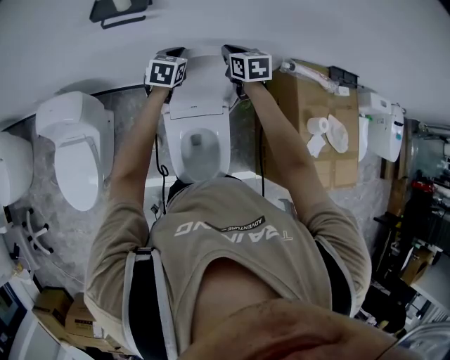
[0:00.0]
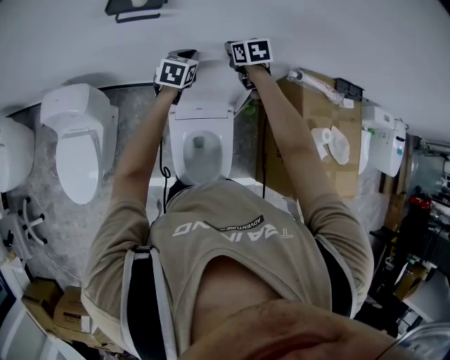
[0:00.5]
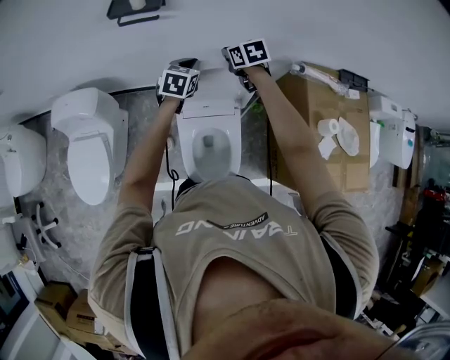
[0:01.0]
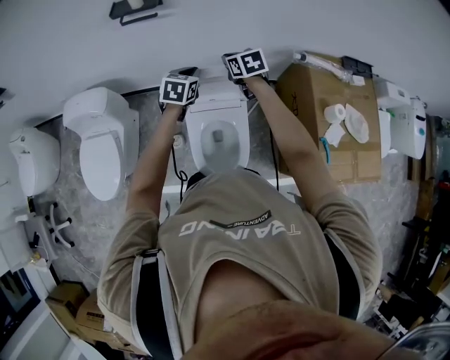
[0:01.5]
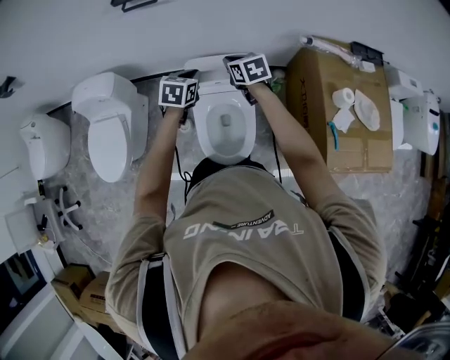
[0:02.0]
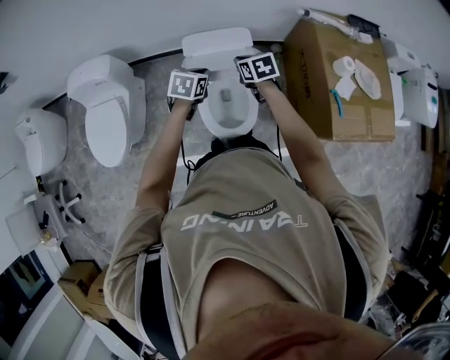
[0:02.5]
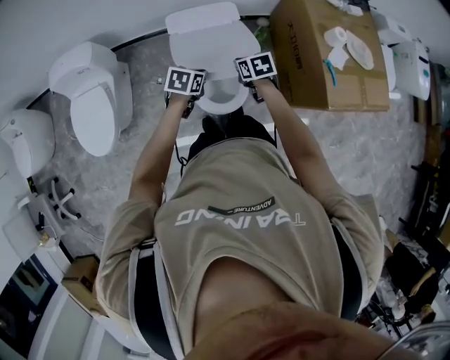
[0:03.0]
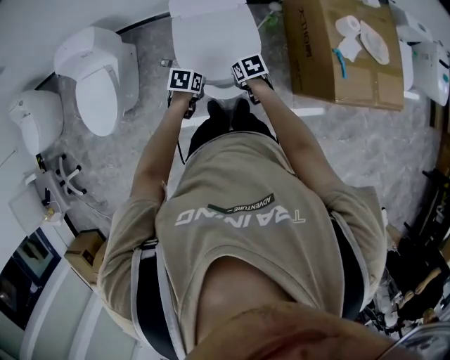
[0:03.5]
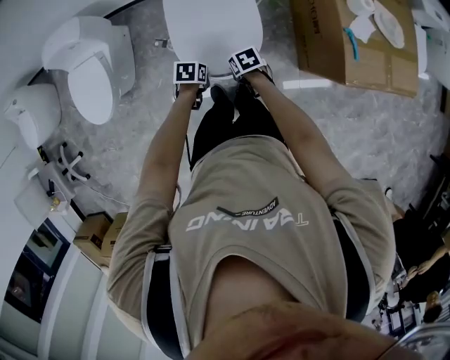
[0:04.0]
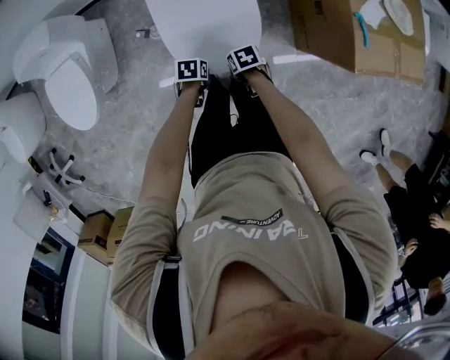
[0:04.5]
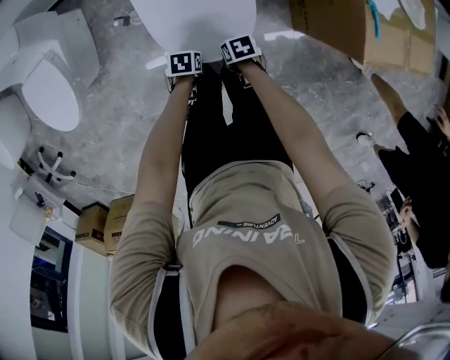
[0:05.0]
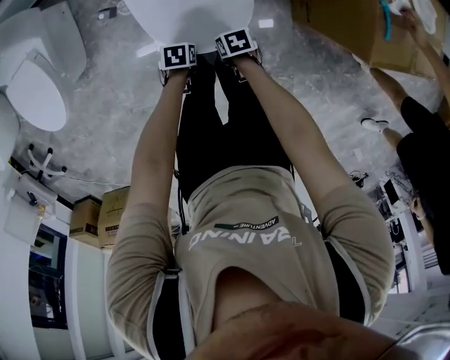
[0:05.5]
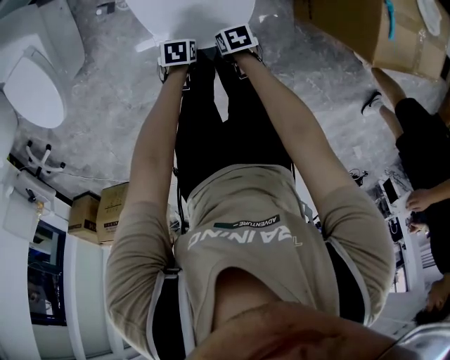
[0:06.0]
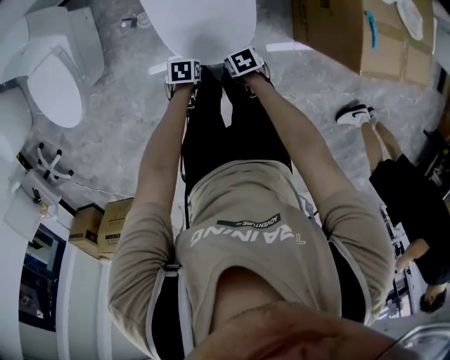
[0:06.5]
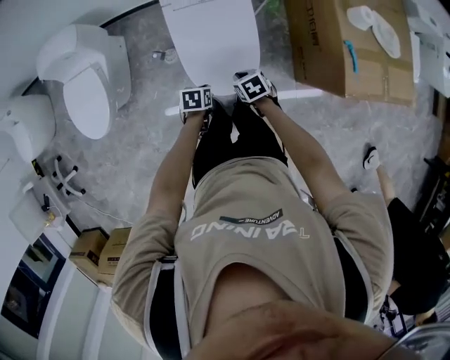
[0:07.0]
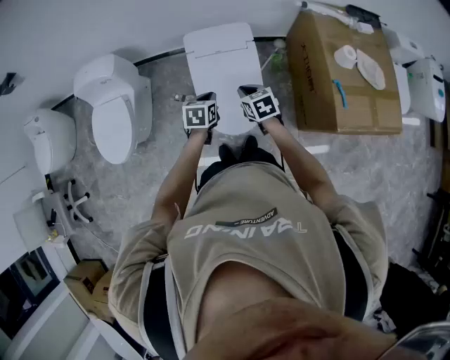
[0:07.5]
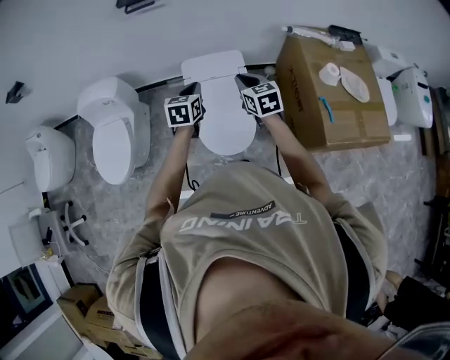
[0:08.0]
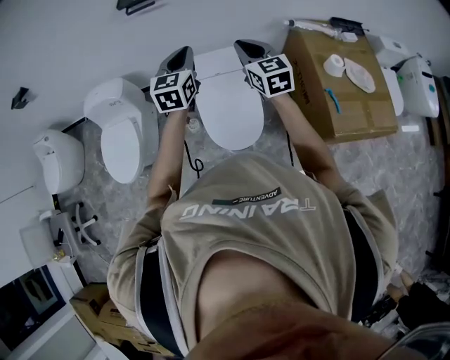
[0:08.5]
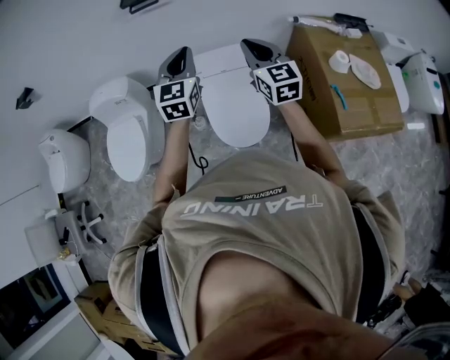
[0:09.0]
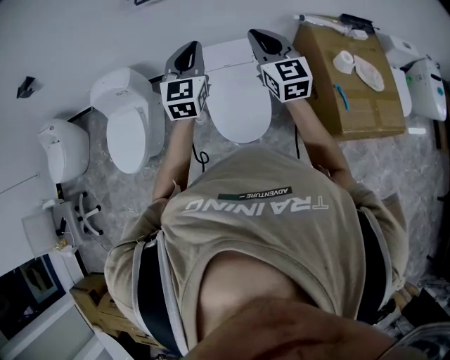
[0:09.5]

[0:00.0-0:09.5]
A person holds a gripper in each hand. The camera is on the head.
0:00.0 to 0:02.0: Both grippers travel together backward, about 20 cm.
0:02.0 to 0:04.0: The left gripper ends up some 40 cm from where it was, and swivels some 40 degrees. Meanwhile the right gripper ends up roughly 40 cm from where it was, and turns by roughly 40 degrees.
0:04.0 to 0:05.5: The two grippers go roughly 20 cm downward.
0:05.5 to 0:07.5: The grippers both shift upward by roughly 35 cm. The right gripper rotates roughly 40 degrees, while the left gripper swivels roughly 40 degrees.
0:07.5 to 0:09.5: The two grippers go about 30 cm upward. The left gripper points its fingers roughly 40 degrees further upward; the right gripper tilts its fingers some 40 degrees upward.

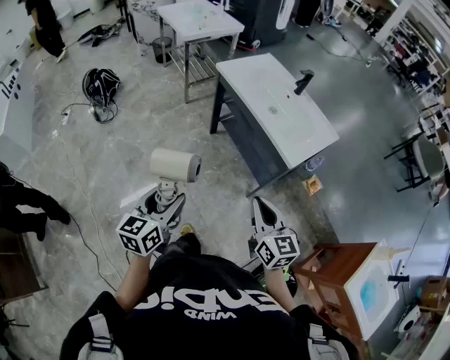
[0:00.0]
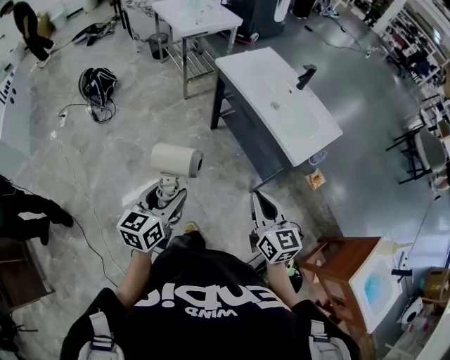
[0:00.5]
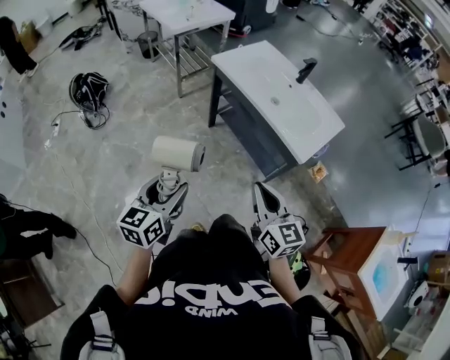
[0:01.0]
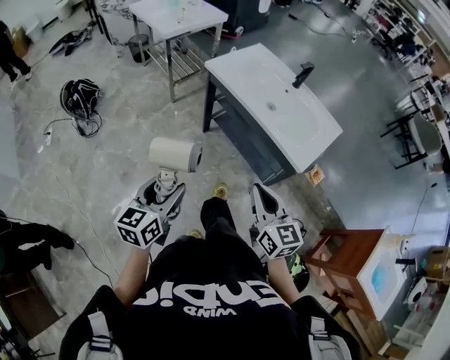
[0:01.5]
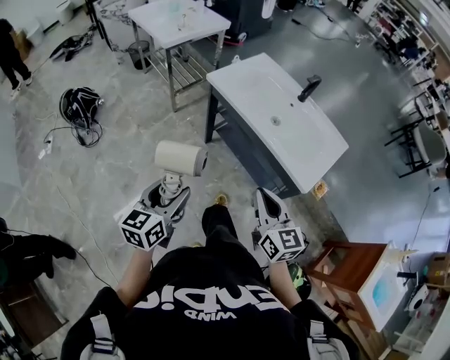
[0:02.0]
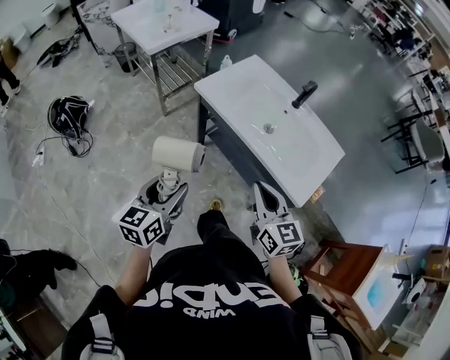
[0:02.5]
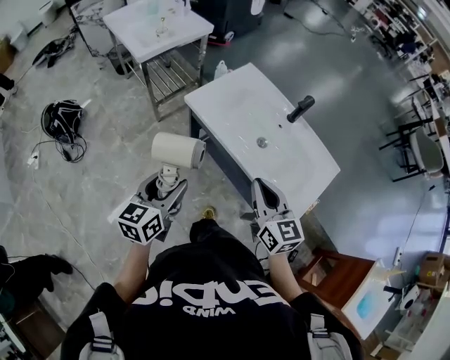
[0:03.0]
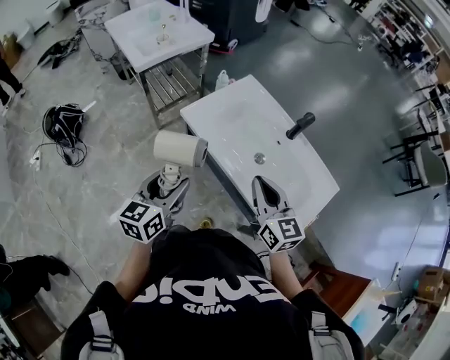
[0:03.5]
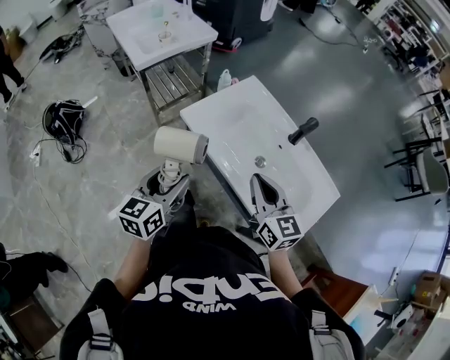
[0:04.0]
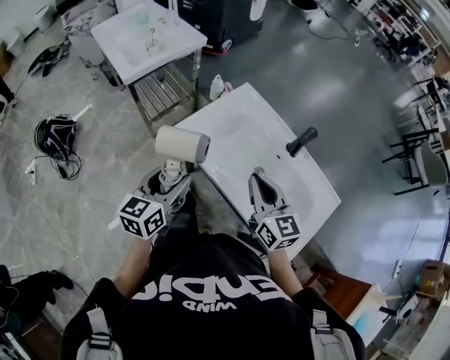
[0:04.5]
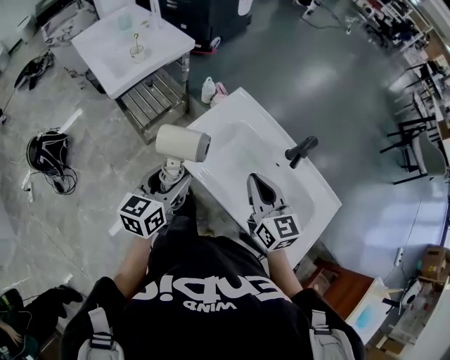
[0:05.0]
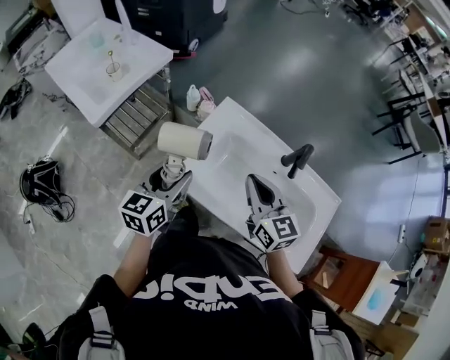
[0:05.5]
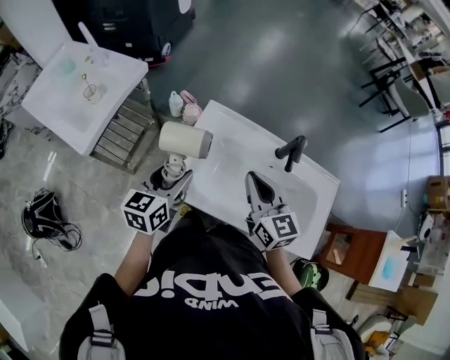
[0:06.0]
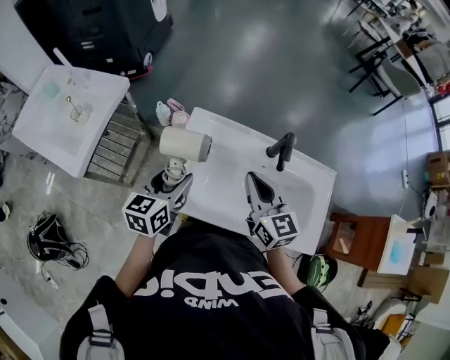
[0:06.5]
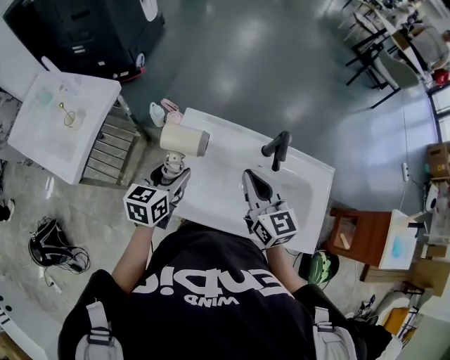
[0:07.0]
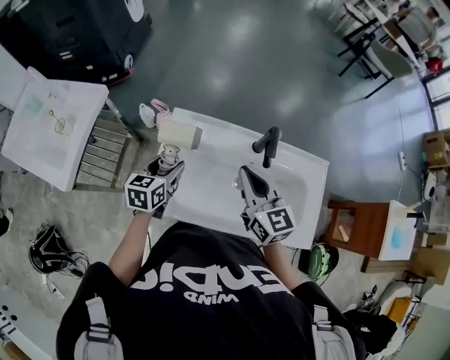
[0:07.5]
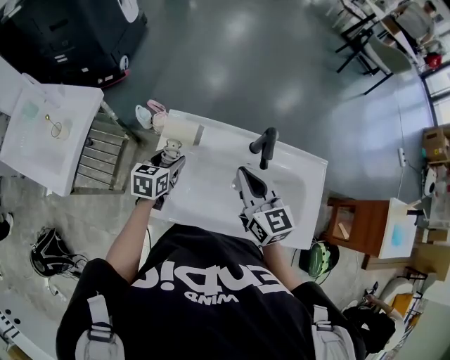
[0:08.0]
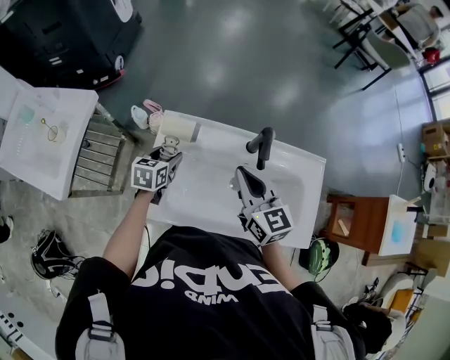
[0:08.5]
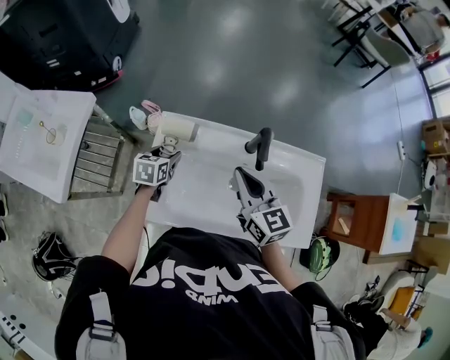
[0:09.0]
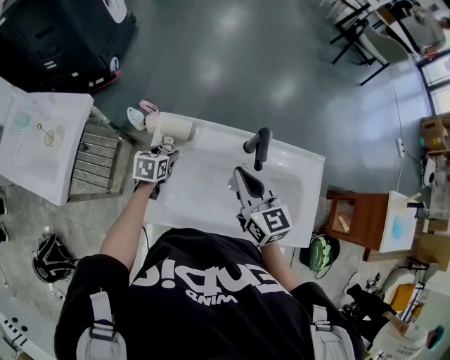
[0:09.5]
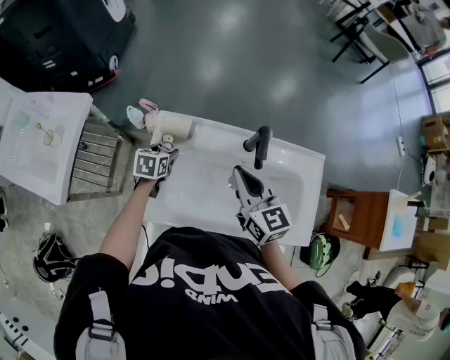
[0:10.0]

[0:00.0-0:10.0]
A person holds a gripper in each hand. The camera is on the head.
0:00.0 to 0:02.0: The two grippers go some 20 cm forward.
0:02.0 to 0:04.0: The two grippers go about 30 cm forward.
0:04.0 to 0:06.0: The right gripper shifts by some 20 cm, and rotates approximately 30 degrees; the left gripper changes place by about 30 cm, and swivels approximately 30 degrees.
0:06.0 to 0:08.0: The left gripper shifts about 20 cm forward, downward and to the right, and changes its angle by approximately 20 degrees, while the right gripper goes some 5 cm to the right.
0:08.0 to 0:10.0: The left gripper goes some 5 cm downward.

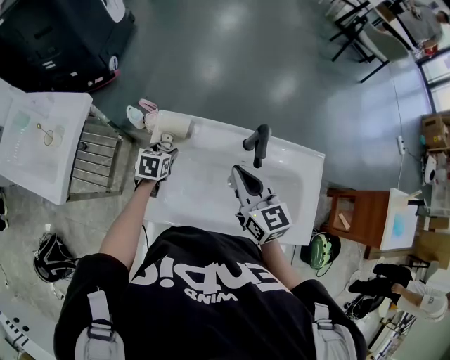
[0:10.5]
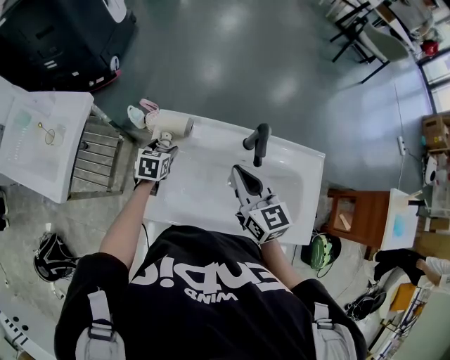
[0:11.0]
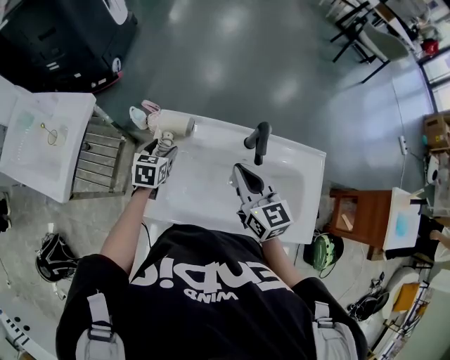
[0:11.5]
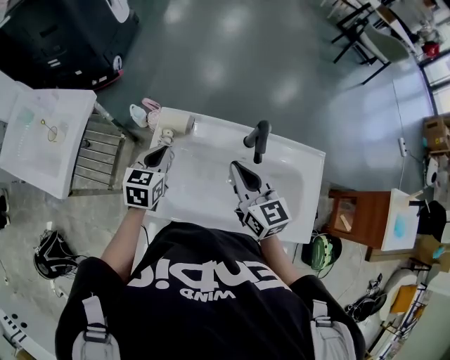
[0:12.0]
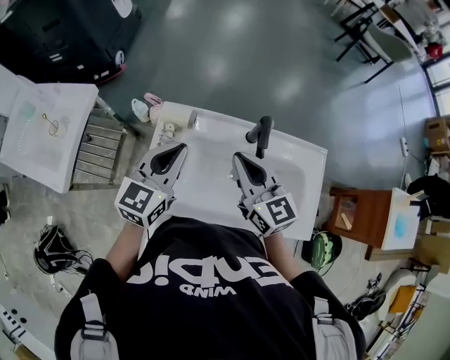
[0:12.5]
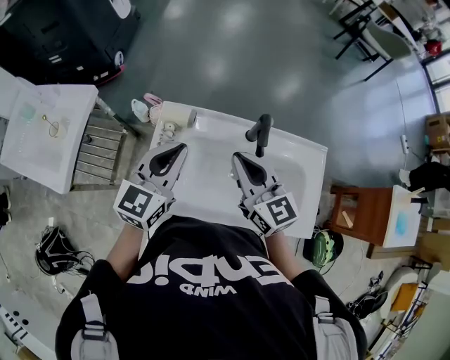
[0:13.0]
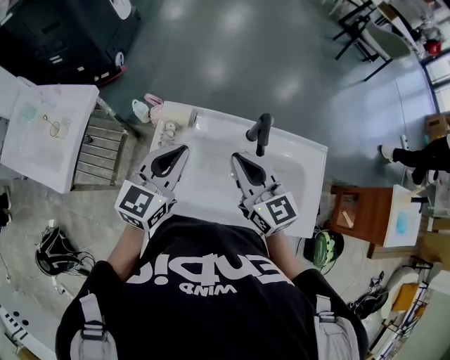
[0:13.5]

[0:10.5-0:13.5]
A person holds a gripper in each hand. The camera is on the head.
0:10.5 to 0:12.0: The left gripper travels upward by about 15 cm, changes its angle by approximately 20 degrees, and closes.
0:12.0 to 0:13.5: The left gripper is displaced upward and to the right by about 15 cm, and rotates approximately 30 degrees.

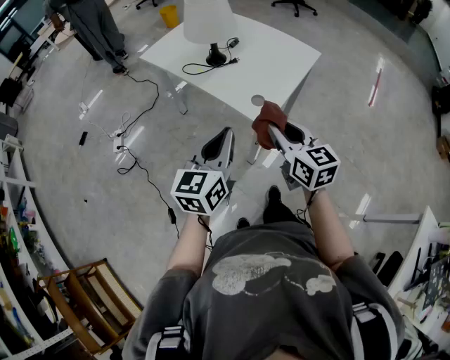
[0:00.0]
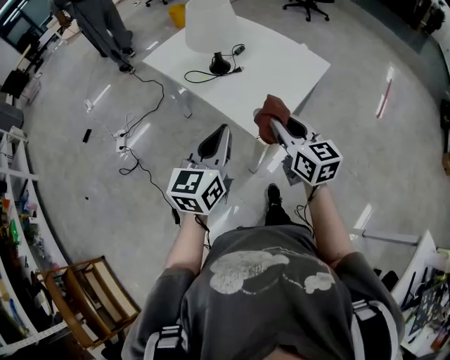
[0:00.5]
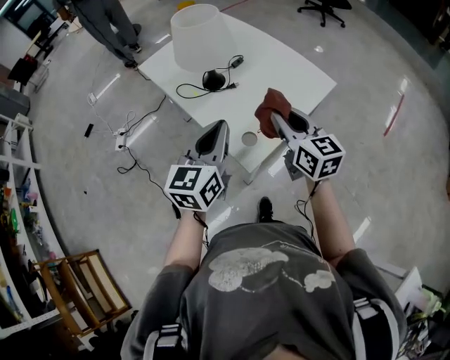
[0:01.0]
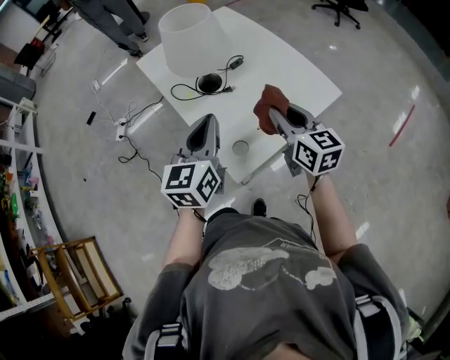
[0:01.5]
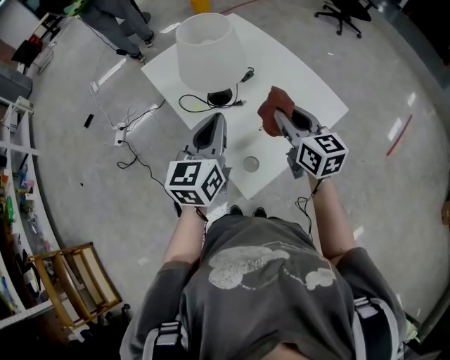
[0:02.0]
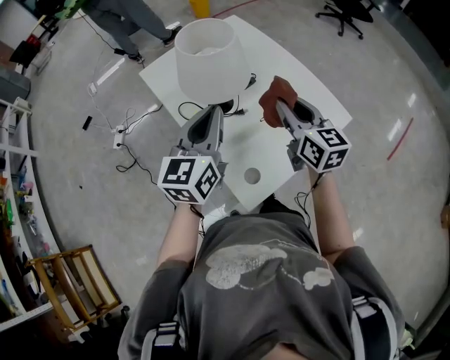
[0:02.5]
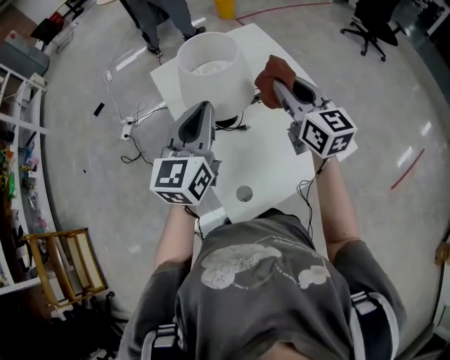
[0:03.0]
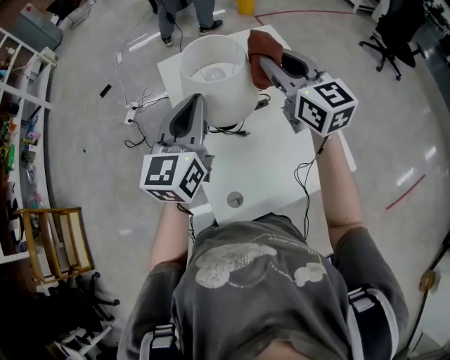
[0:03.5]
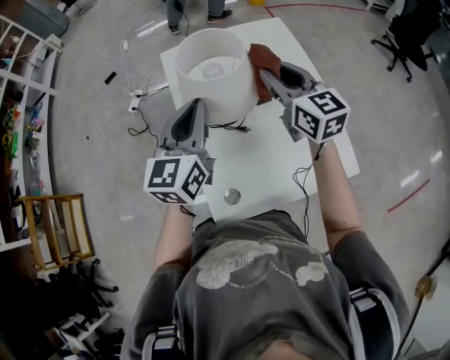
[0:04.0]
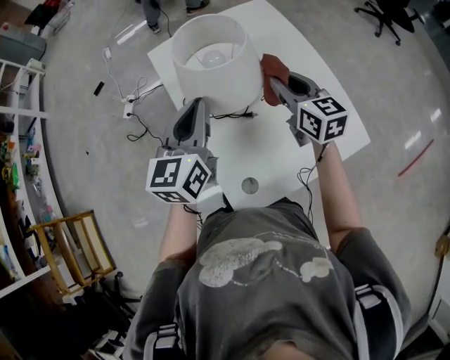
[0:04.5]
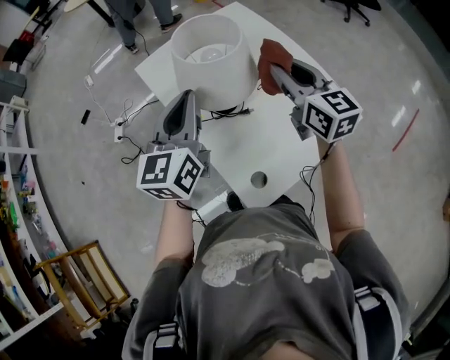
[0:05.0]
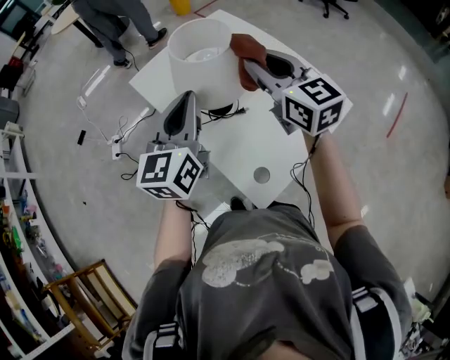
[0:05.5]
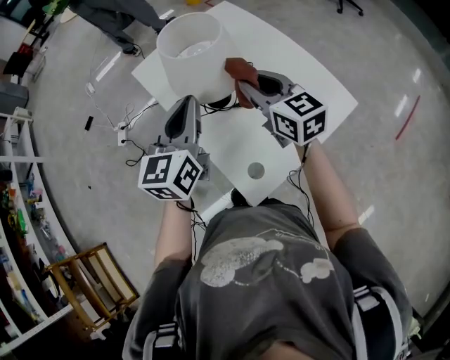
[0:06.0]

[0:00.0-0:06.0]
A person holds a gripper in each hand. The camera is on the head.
0:00.0 to 0:02.0: Both grippers move forward, roughly 30 cm.
0:02.0 to 0:04.0: The right gripper ends up roughly 25 cm from where it was, and swivels some 30 degrees, while the left gripper shifts by roughly 10 cm, and swivels approximately 20 degrees.
0:04.0 to 0:06.0: The right gripper swings up and down, some 15 cm each way, with 2 reversals.
